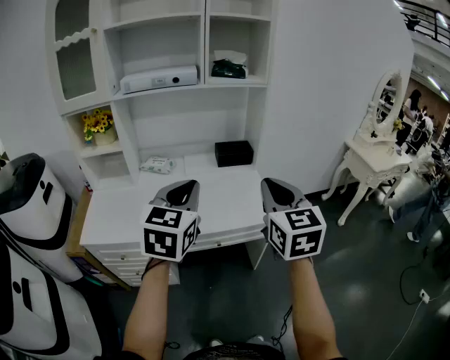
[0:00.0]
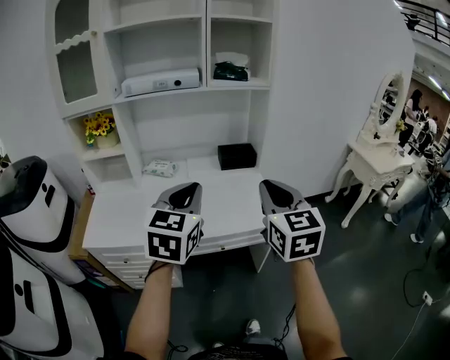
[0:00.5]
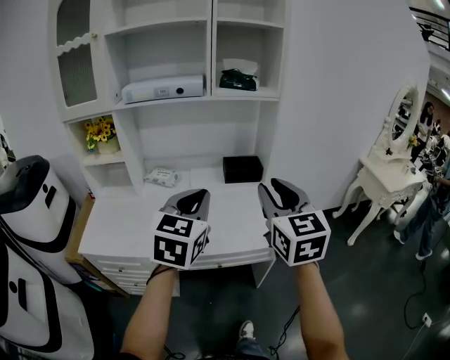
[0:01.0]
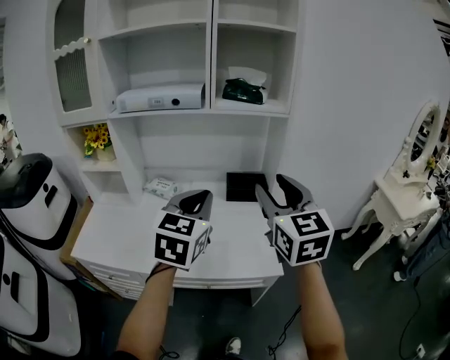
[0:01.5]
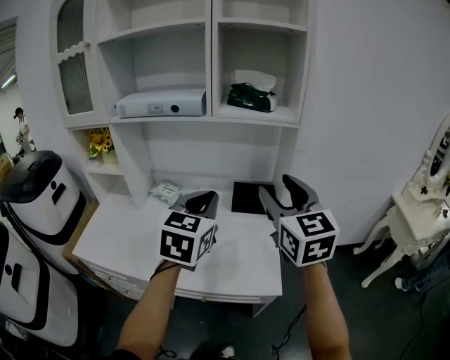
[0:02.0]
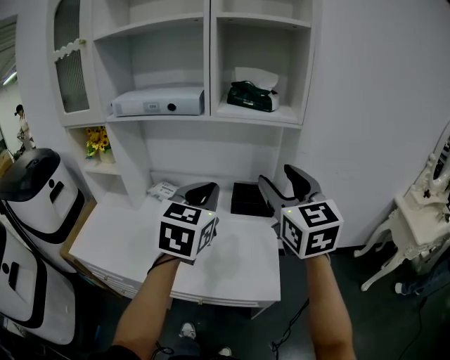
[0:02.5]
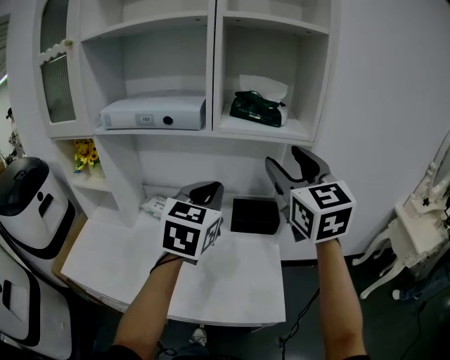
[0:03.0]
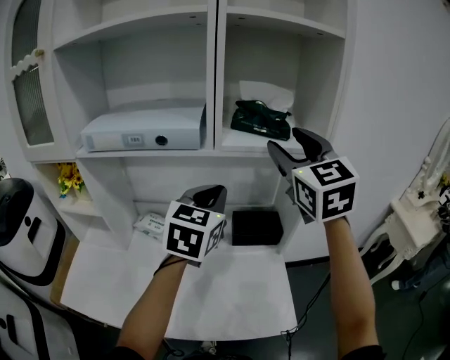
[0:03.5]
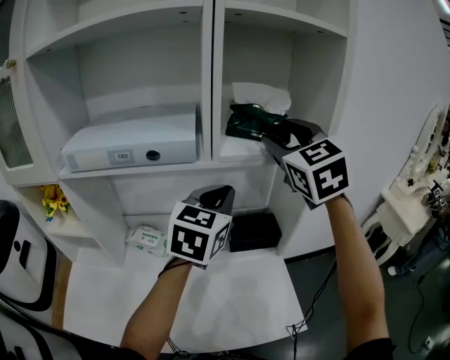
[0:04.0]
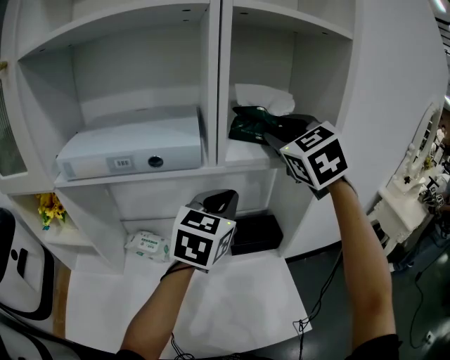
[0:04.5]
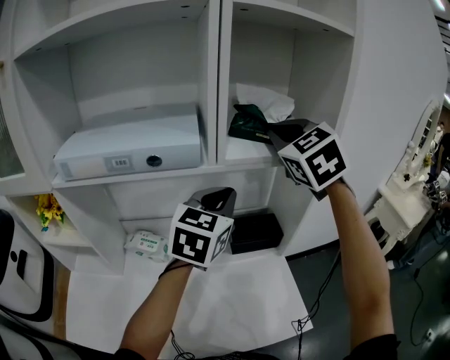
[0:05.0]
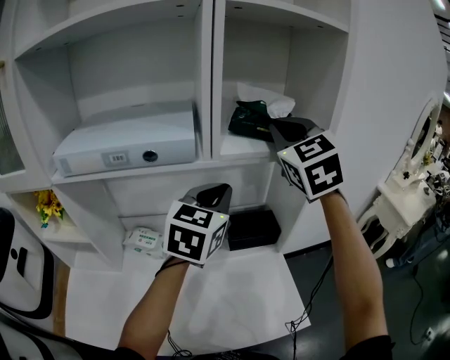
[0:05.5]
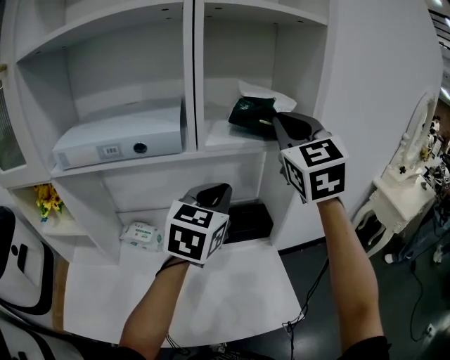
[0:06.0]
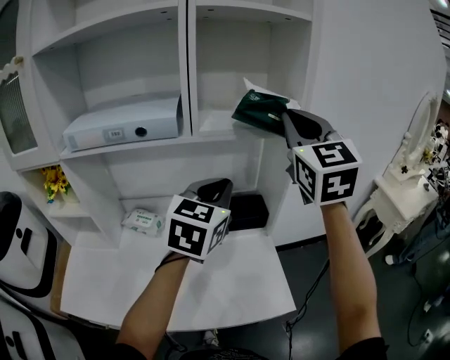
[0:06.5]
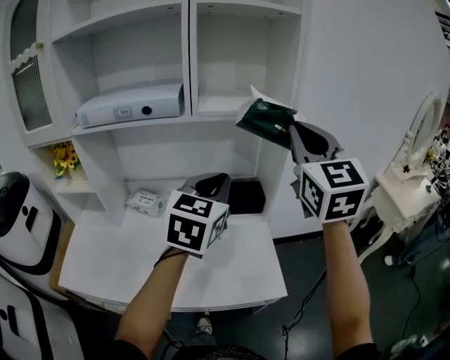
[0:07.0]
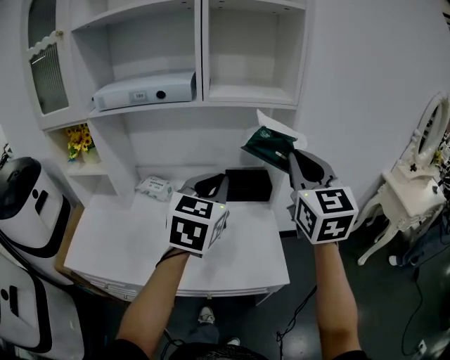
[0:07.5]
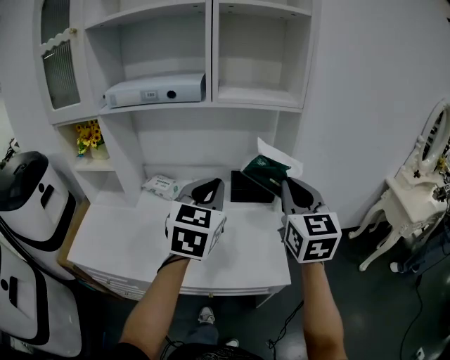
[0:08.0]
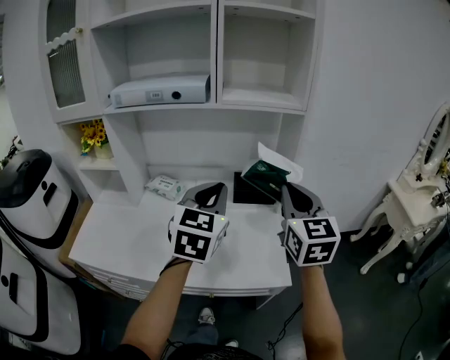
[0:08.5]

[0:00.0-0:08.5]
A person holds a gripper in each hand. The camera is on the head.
0:00.0 to 0:02.0: The two grippers go roughly 25 cm forward. The right gripper opens.
0:02.0 to 0:04.0: The left gripper travels forward by about 25 cm; the right gripper heads forward and upward, covering roughly 30 cm, and rotates roughly 20 degrees.
0:04.0 to 0:06.5: Both grippers travel together backward and to the right, roughly 10 cm. The right gripper closes up.
0:06.5 to 0:08.5: The right gripper goes about 25 cm downward and backward, while the left gripper moves backward, about 15 cm.

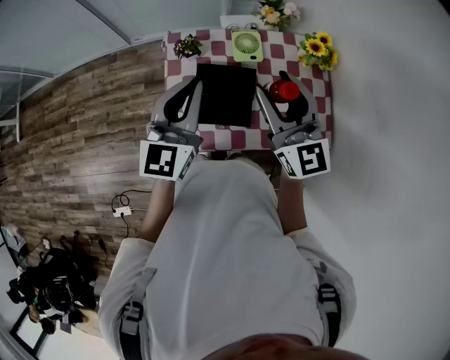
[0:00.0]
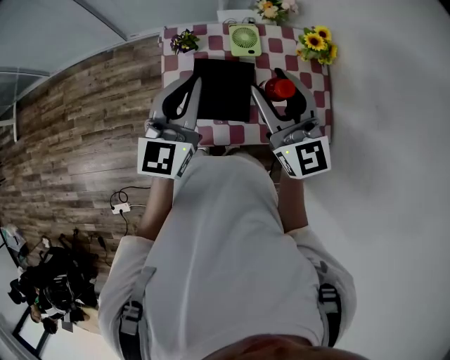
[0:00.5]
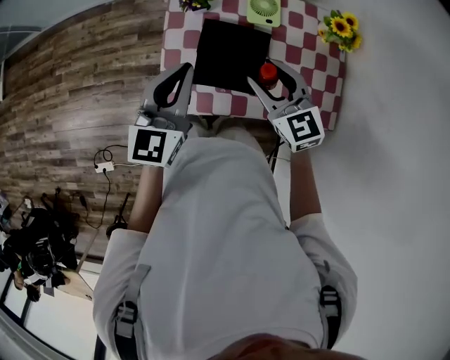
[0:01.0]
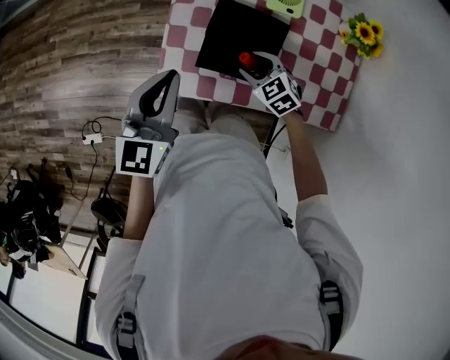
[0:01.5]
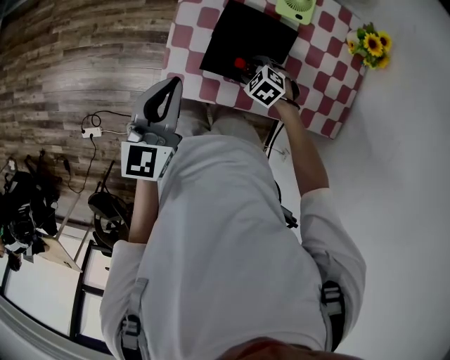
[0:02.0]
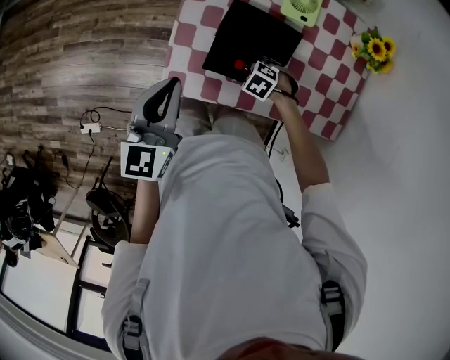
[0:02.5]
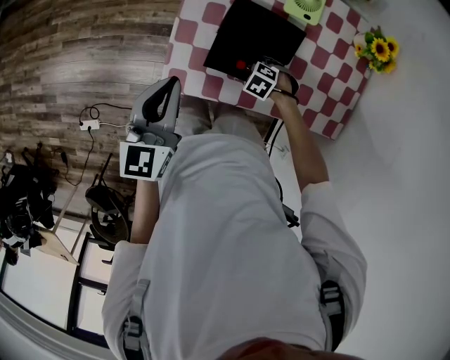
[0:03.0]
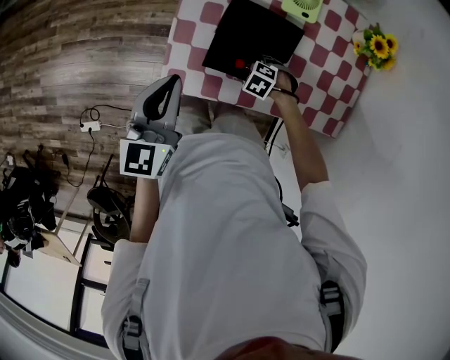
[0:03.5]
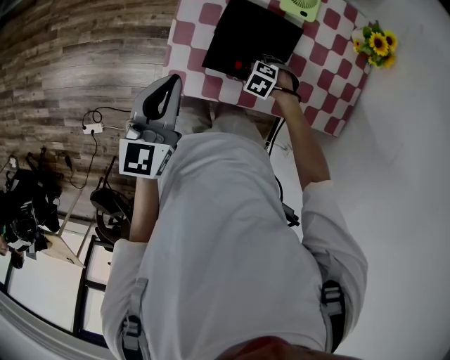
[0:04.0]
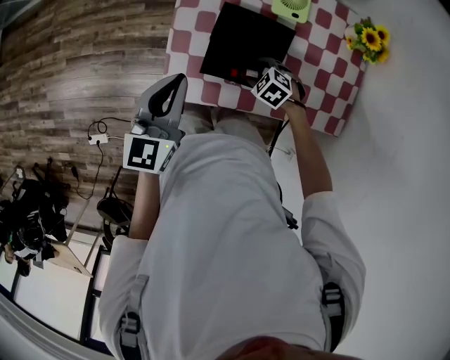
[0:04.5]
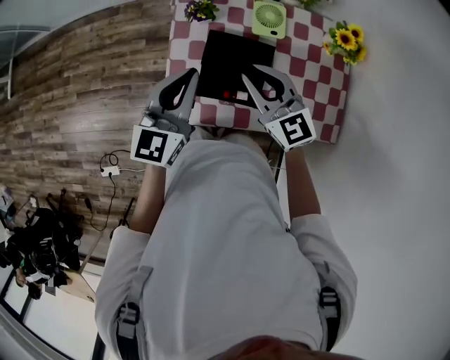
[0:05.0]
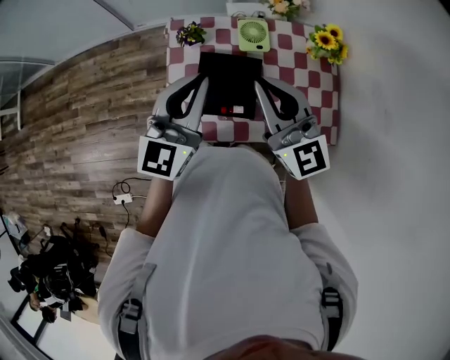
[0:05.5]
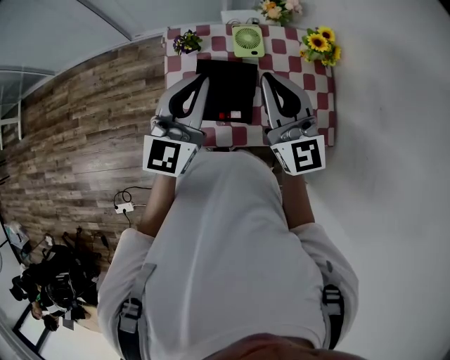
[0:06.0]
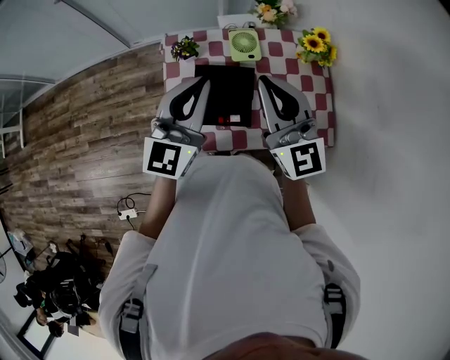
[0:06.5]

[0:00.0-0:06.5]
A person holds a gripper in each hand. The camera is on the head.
0:00.0 to 0:02.0: The left gripper shifts about 15 cm downward, and rotates approximately 20 degrees, while the right gripper travels downward by roughly 40 cm, and angles its fingers downward, by about 70 degrees.
0:04.5 to 0:06.5: The left gripper travels upward by roughly 15 cm, and changes its angle by some 30 degrees. The right gripper is displaced upward by about 40 cm, points its fingers approximately 80 degrees further upward, and closes its fingers.

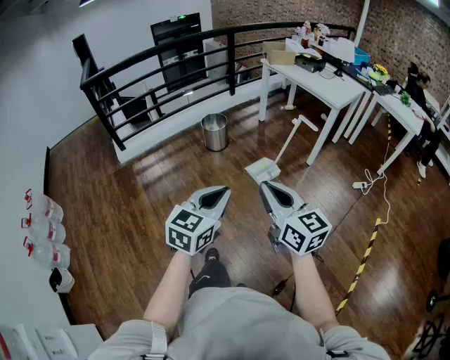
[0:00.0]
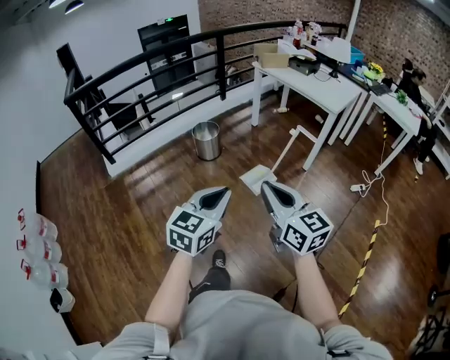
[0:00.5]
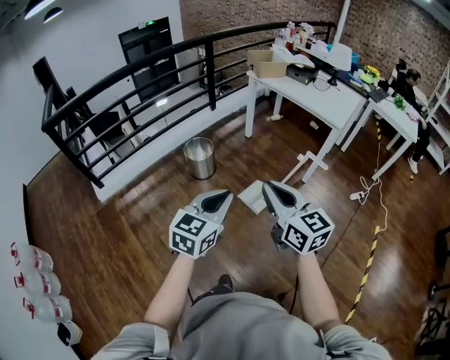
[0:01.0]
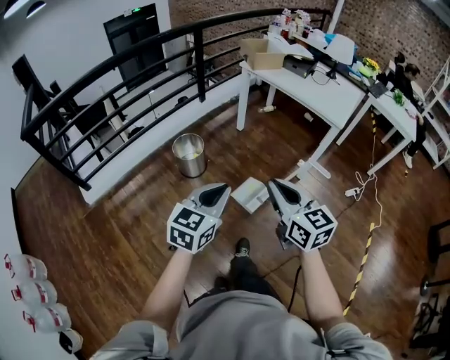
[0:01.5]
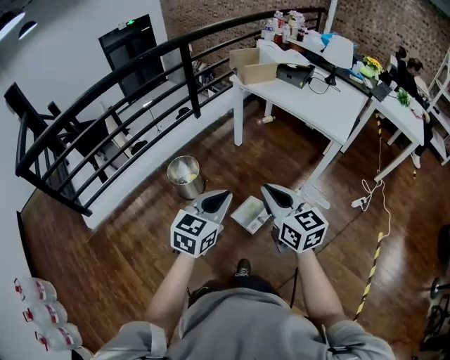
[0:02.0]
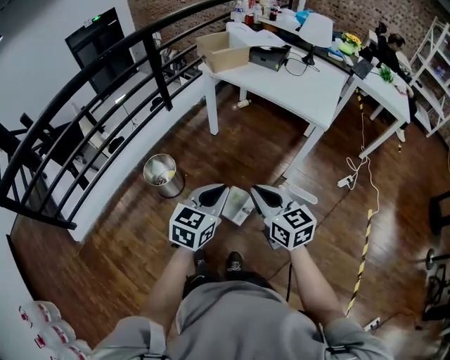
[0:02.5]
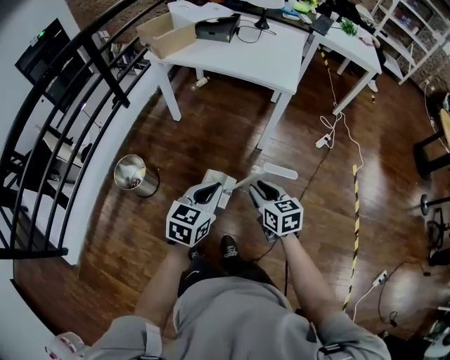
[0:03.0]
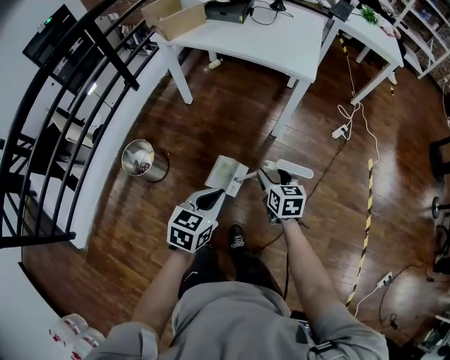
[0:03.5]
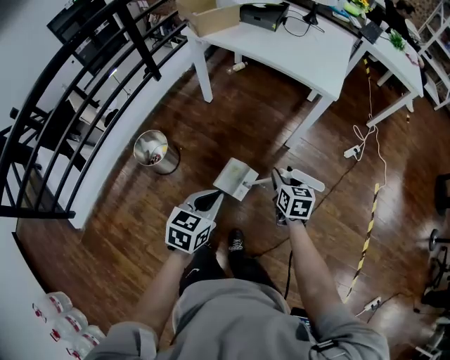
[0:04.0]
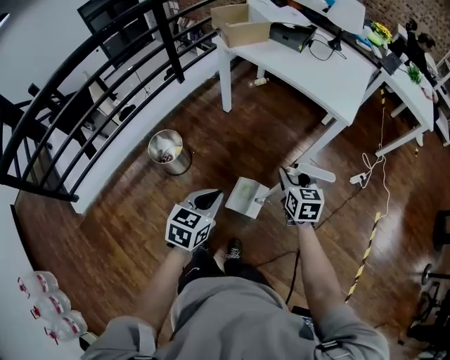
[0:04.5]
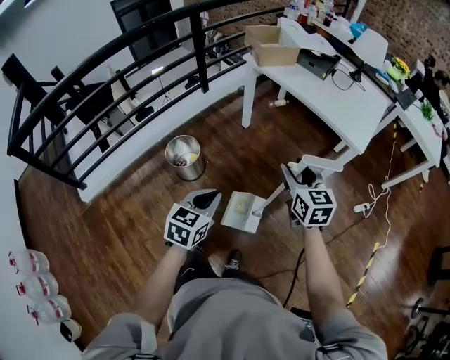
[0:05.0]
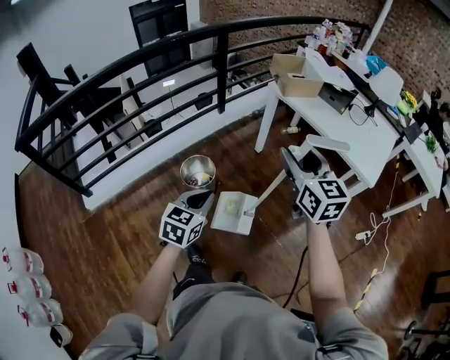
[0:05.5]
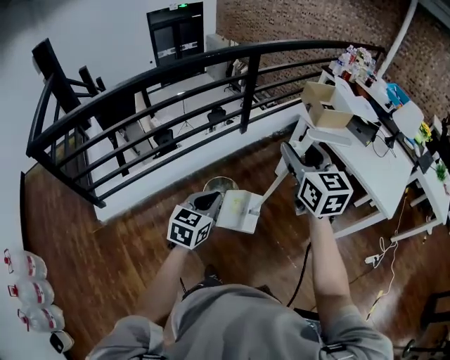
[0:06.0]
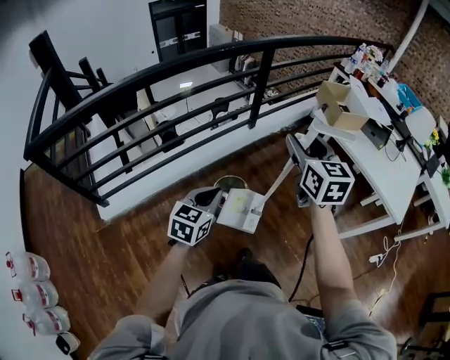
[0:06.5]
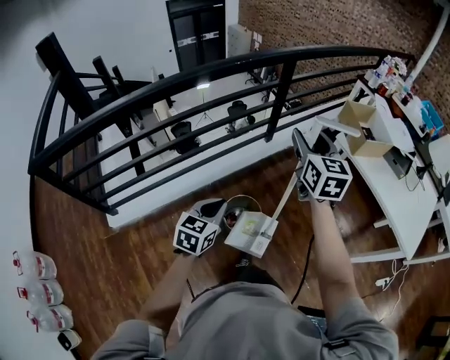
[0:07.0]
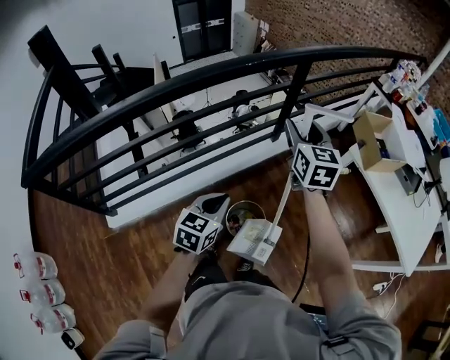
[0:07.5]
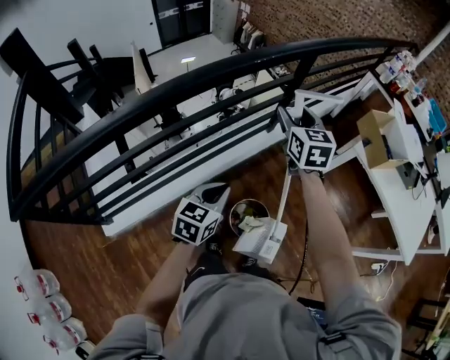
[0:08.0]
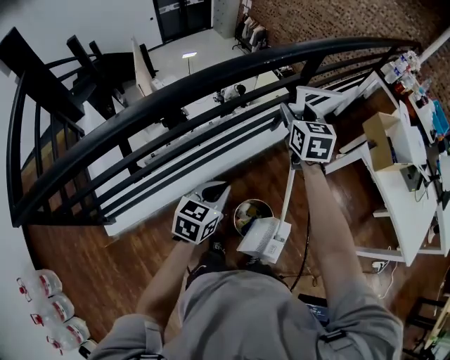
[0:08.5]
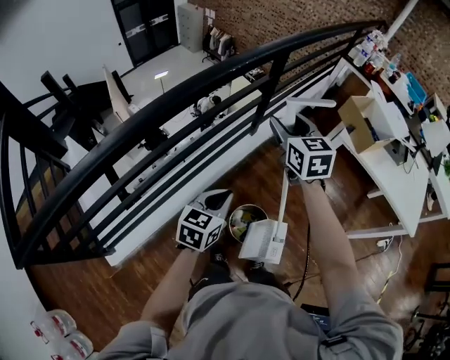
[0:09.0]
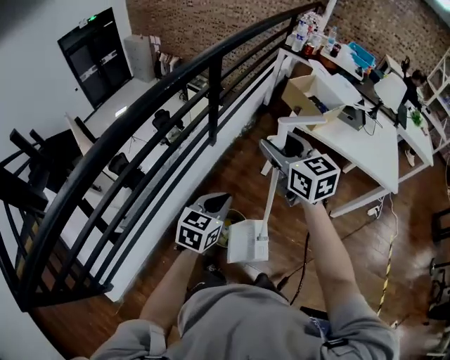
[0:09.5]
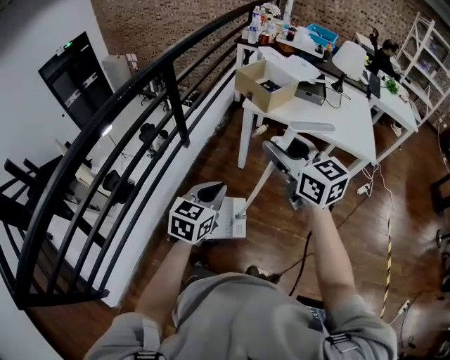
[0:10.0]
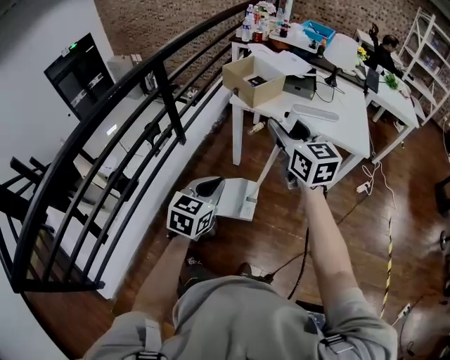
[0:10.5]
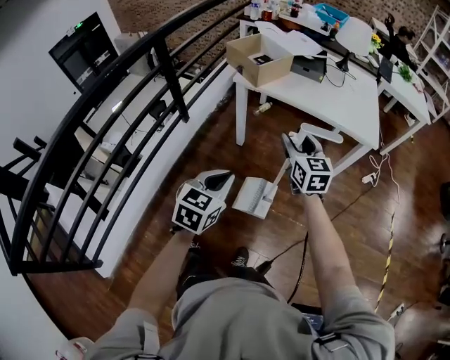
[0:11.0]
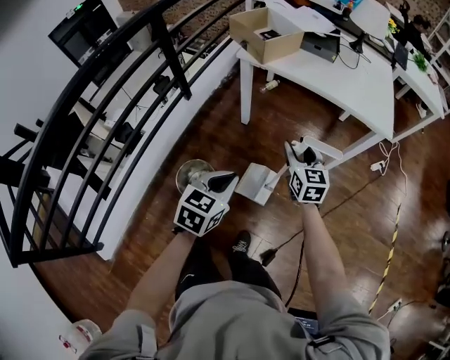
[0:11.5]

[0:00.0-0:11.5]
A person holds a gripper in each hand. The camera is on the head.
0:00.0 to 0:02.0: The two grippers travel together, forward, approximately 50 cm.
0:02.0 to 0:04.0: The left gripper moves downward, some 15 cm, and changes its angle by roughly 20 degrees. Meanwhile the right gripper shifts roughly 25 cm downward, changes its angle by approximately 40 degrees, and opens.
0:04.0 to 0:06.0: The two grippers travel together, some 40 cm. The right gripper rotates some 50 degrees. The left gripper turns by some 30 degrees.
0:06.0 to 0:07.5: Both grippers travel together forward and to the left, approximately 35 cm.
0:07.5 to 0:09.5: The right gripper is displaced backward by about 5 cm, and moves about 10 cm to the left and comes back. Meanwhile the left gripper is displaced forward and to the right by some 10 cm, and rotates about 30 degrees.
0:09.5 to 0:11.5: The left gripper moves to the right, some 30 cm; the right gripper moves to the right and downward, approximately 50 cm, and changes its angle by roughly 30 degrees.
